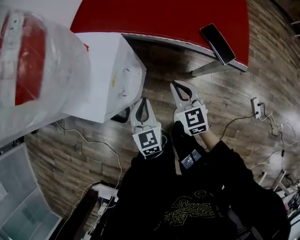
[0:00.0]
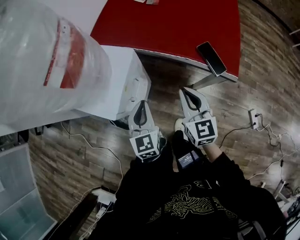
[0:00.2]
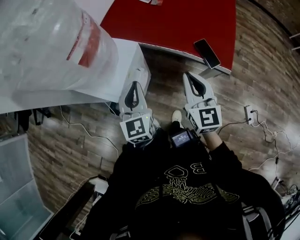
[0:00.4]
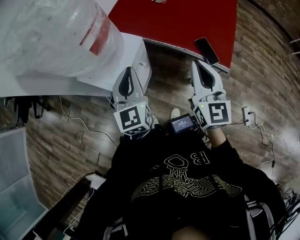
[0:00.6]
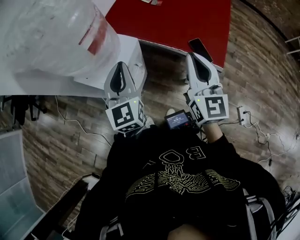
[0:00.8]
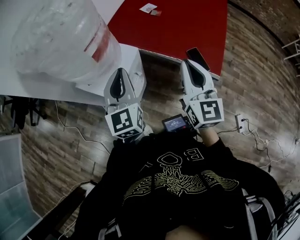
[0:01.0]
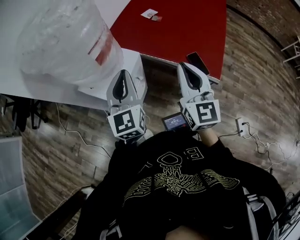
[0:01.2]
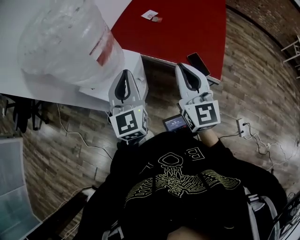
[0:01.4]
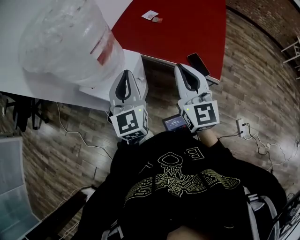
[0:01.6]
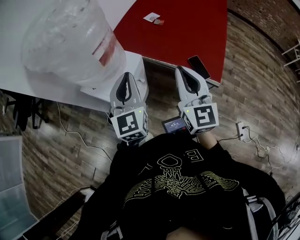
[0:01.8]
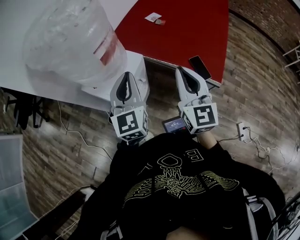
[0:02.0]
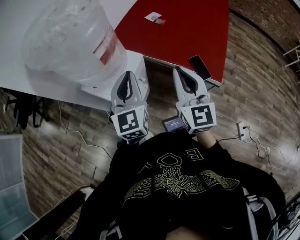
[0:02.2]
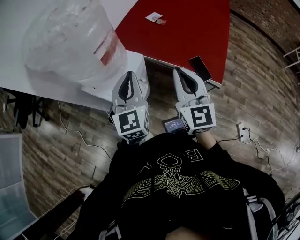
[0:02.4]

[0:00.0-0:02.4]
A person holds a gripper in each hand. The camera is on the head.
0:00.0 to 0:01.2: The two grippers go approximately 35 cm upward. The left gripper rotates about 30 degrees. Meanwhile the right gripper turns by roughly 30 degrees.
0:01.2 to 0:02.4: The grippers move only a little.

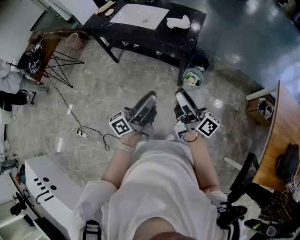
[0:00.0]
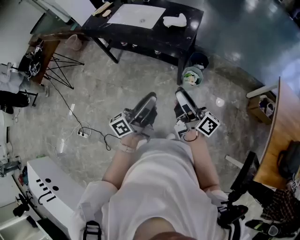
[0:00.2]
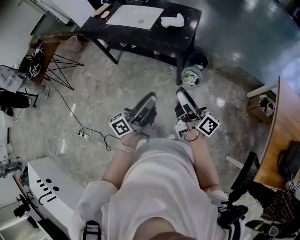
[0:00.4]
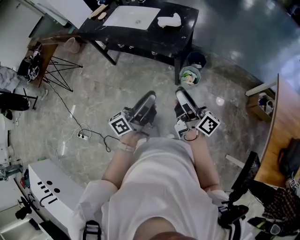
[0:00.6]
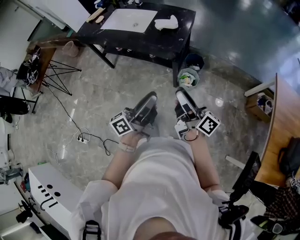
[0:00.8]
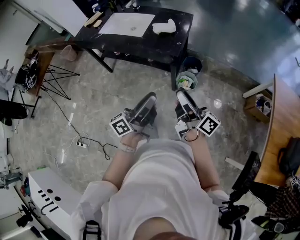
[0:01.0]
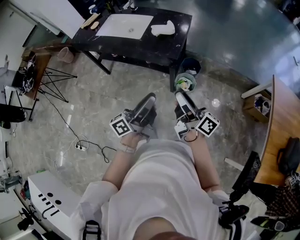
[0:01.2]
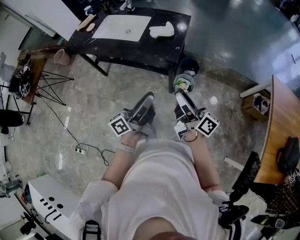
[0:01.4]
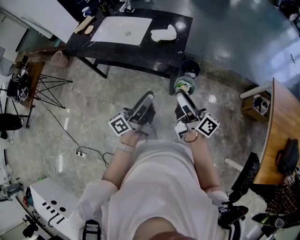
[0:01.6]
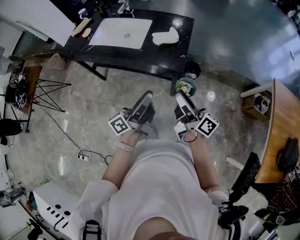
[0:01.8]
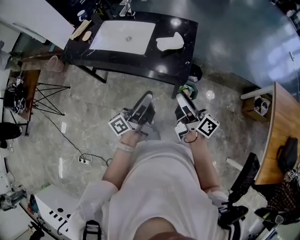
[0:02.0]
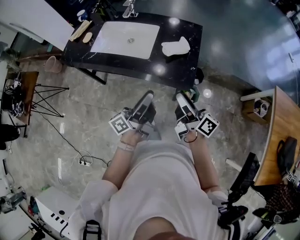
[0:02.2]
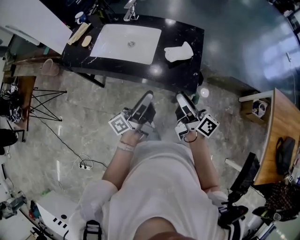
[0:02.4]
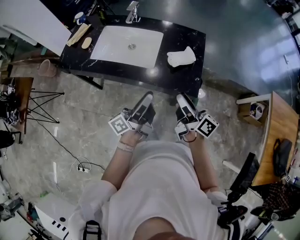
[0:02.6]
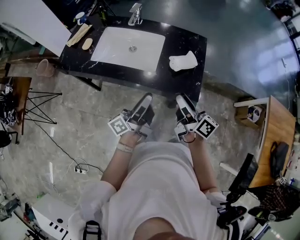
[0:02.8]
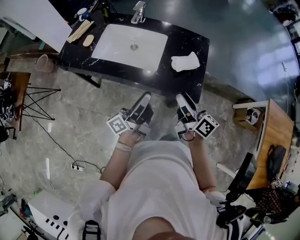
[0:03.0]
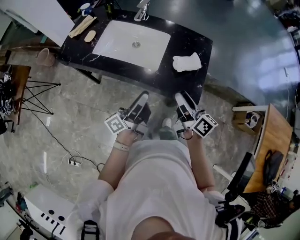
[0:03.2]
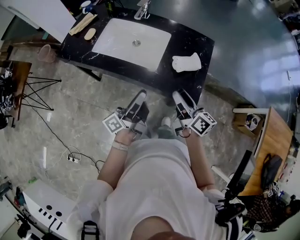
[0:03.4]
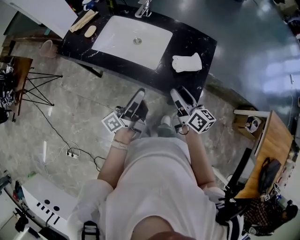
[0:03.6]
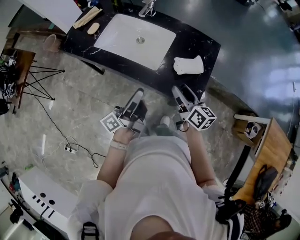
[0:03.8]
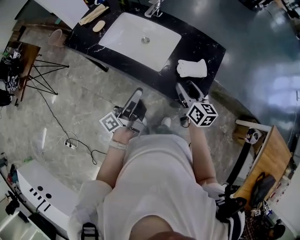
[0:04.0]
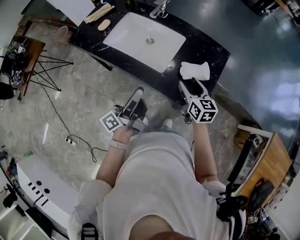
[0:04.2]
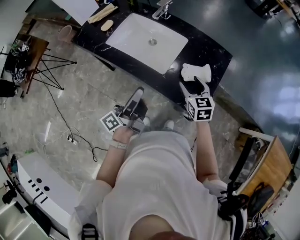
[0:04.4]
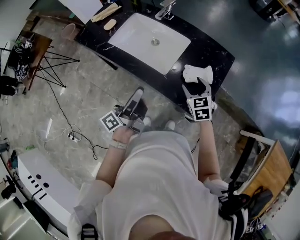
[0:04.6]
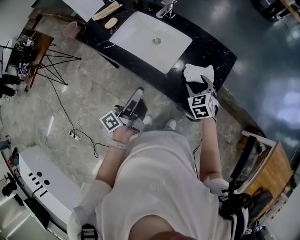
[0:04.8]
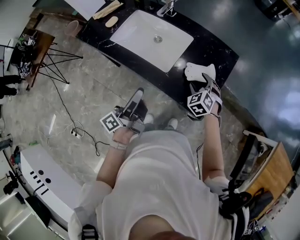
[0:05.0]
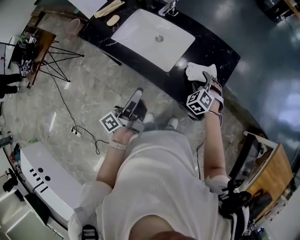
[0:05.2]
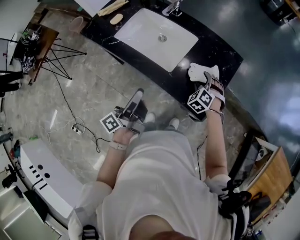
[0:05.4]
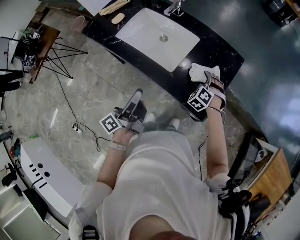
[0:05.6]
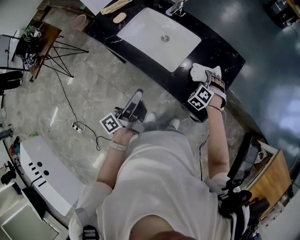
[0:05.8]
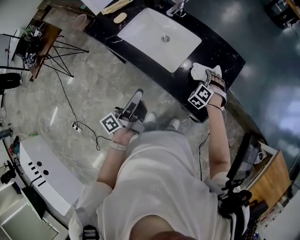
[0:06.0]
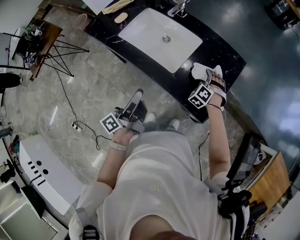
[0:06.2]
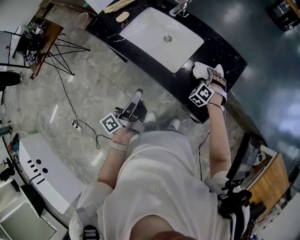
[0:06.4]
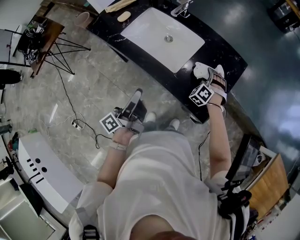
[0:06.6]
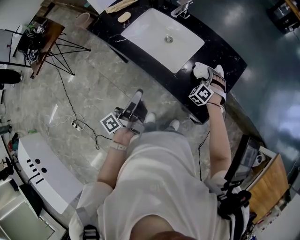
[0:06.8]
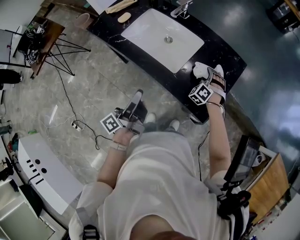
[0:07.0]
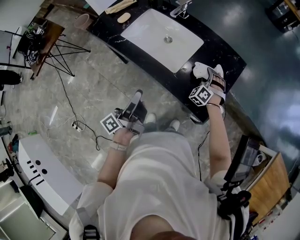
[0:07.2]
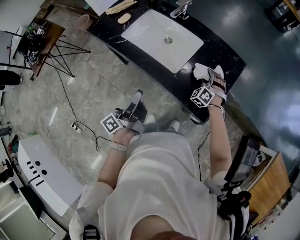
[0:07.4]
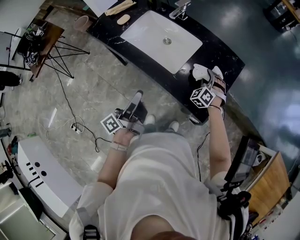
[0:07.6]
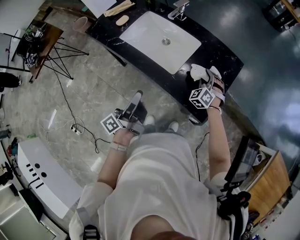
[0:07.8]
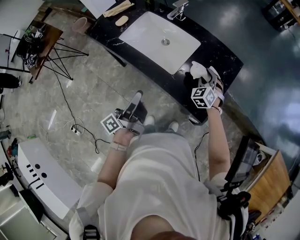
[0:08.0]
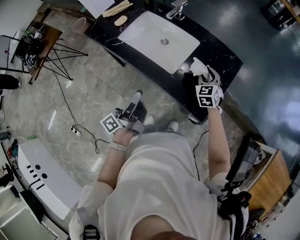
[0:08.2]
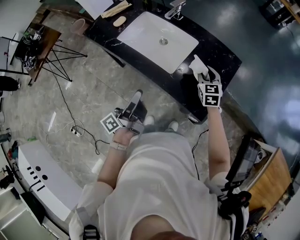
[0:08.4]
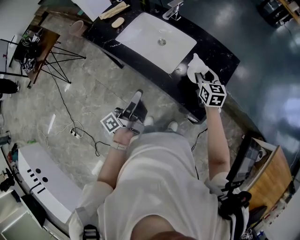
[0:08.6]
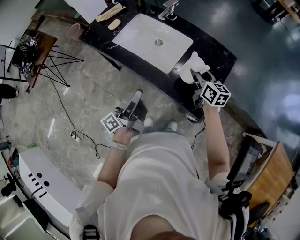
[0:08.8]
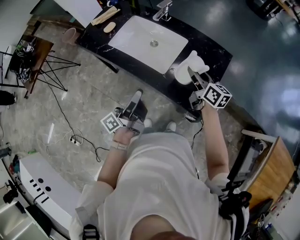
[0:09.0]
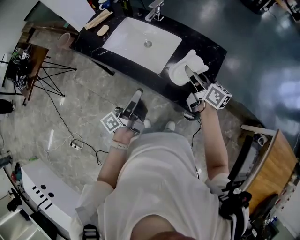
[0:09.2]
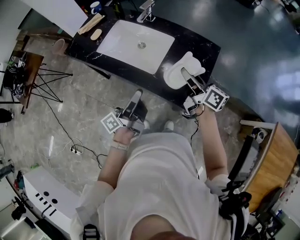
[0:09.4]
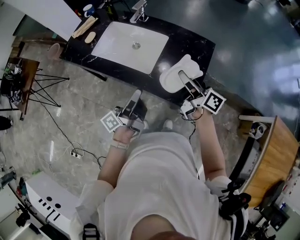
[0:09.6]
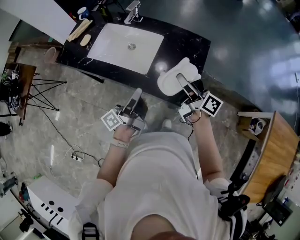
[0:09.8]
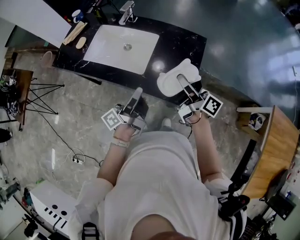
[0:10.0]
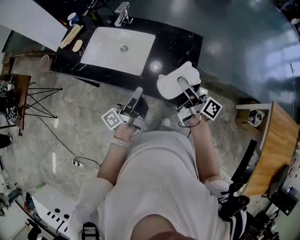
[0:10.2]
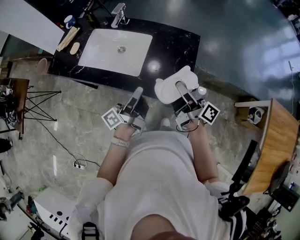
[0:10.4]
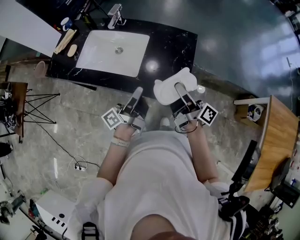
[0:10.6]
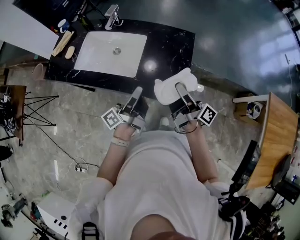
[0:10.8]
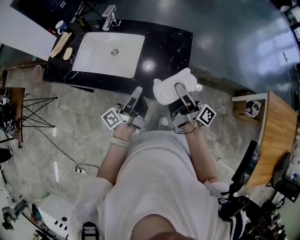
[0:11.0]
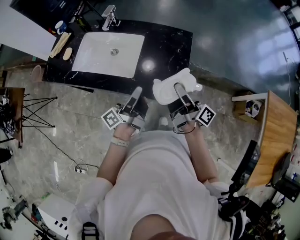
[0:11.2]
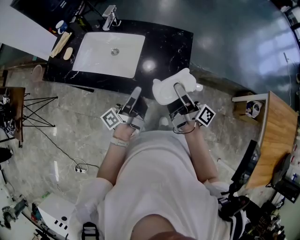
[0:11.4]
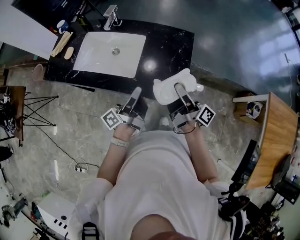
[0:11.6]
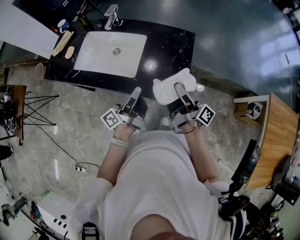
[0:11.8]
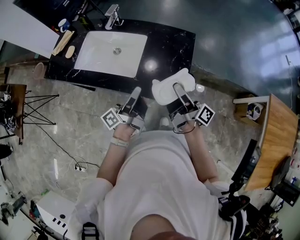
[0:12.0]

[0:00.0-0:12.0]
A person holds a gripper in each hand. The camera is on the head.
0:00.0 to 0:01.6: The right gripper changes place by approximately 15 cm.
0:01.6 to 0:03.0: The right gripper changes place by about 30 cm.
0:03.0 to 0:04.4: The right gripper moves roughly 20 cm, and rotates around the line of its fingers by approximately 50 degrees, counterclockwise from behind.
0:04.4 to 0:06.0: The right gripper shifts some 10 cm downward, and rotates around the line of its fingers by approximately 60 degrees, counterclockwise from behind.
0:06.0 to 0:07.6: The right gripper closes.
0:07.6 to 0:09.0: The right gripper moves upward, approximately 15 cm, and twists approximately 90 degrees clockwise, seen from behind.
0:09.0 to 0:10.4: The right gripper moves roughly 15 cm, and changes its angle by approximately 40 degrees.

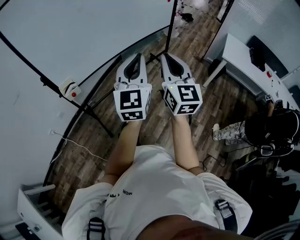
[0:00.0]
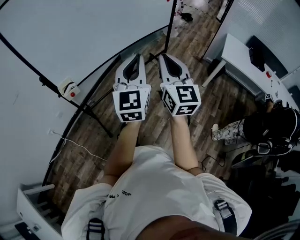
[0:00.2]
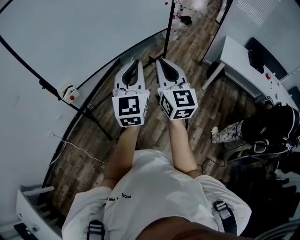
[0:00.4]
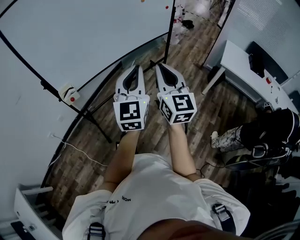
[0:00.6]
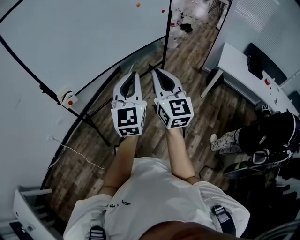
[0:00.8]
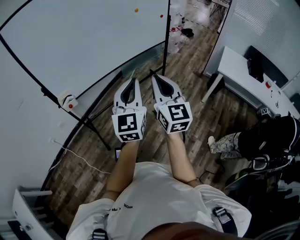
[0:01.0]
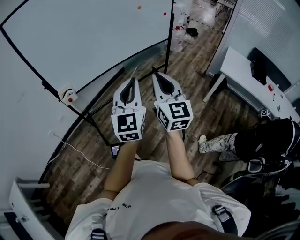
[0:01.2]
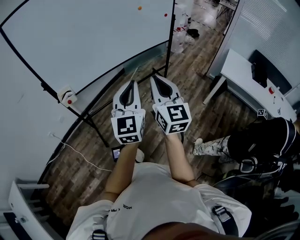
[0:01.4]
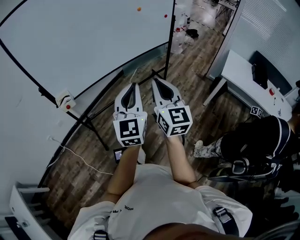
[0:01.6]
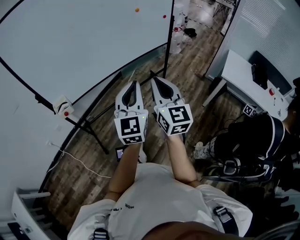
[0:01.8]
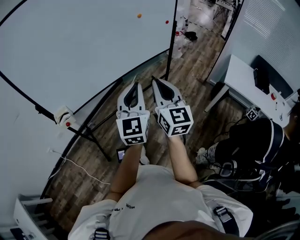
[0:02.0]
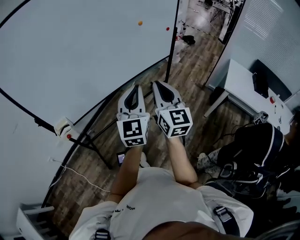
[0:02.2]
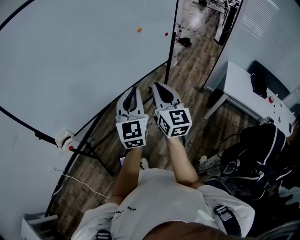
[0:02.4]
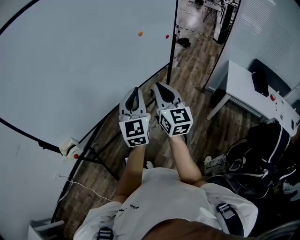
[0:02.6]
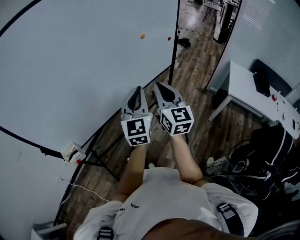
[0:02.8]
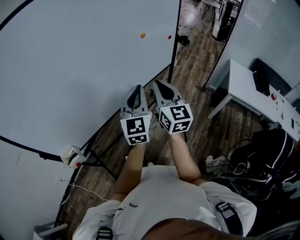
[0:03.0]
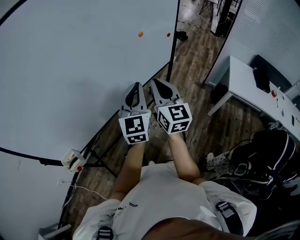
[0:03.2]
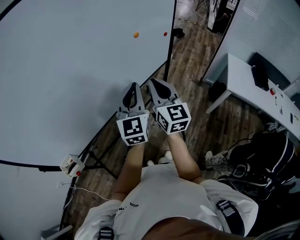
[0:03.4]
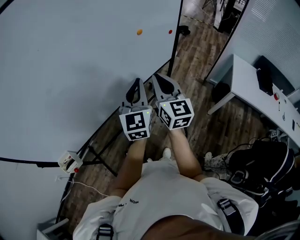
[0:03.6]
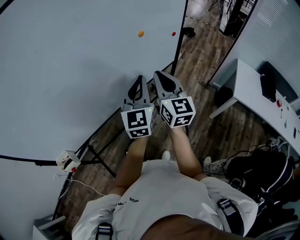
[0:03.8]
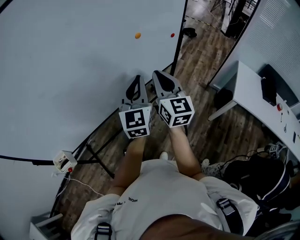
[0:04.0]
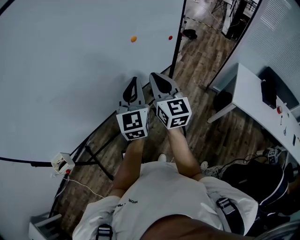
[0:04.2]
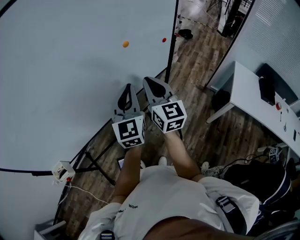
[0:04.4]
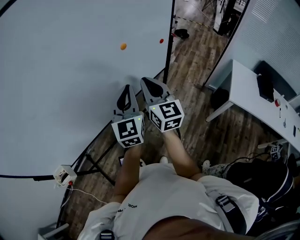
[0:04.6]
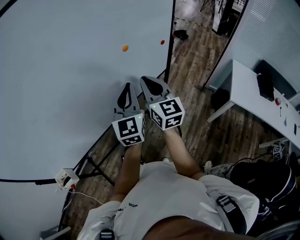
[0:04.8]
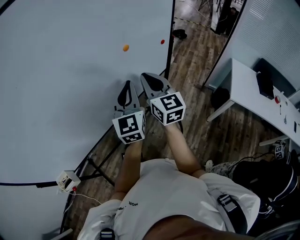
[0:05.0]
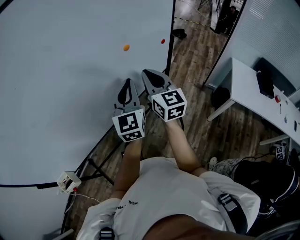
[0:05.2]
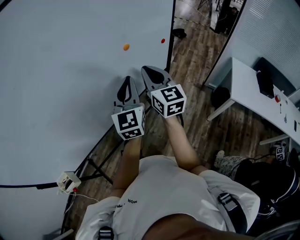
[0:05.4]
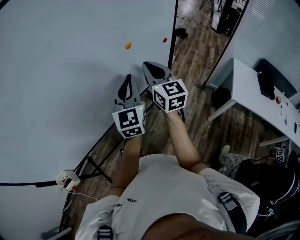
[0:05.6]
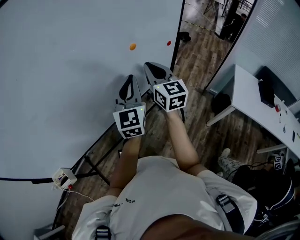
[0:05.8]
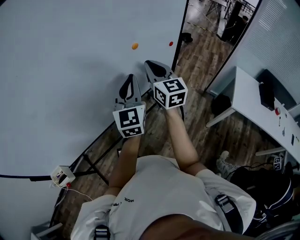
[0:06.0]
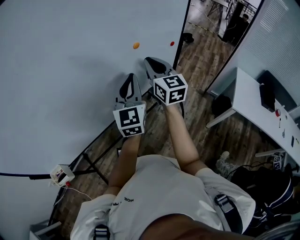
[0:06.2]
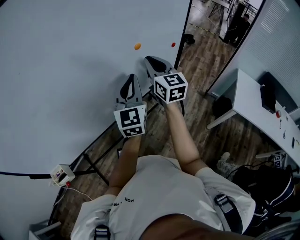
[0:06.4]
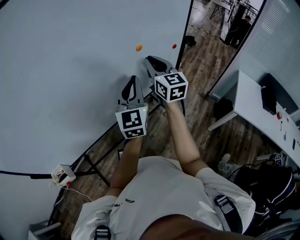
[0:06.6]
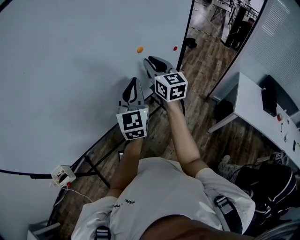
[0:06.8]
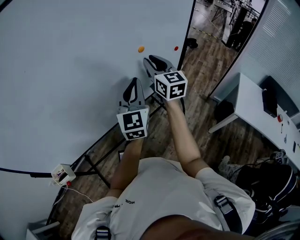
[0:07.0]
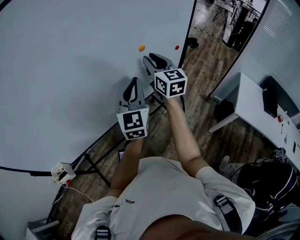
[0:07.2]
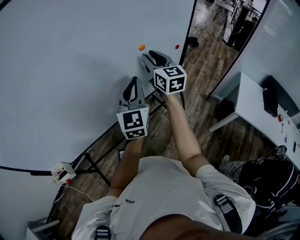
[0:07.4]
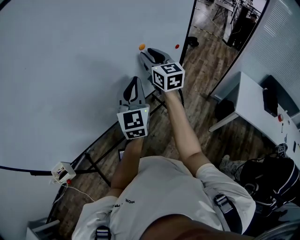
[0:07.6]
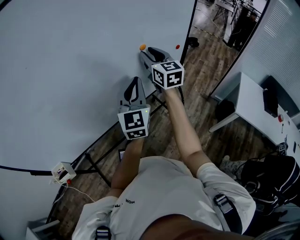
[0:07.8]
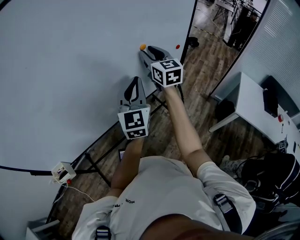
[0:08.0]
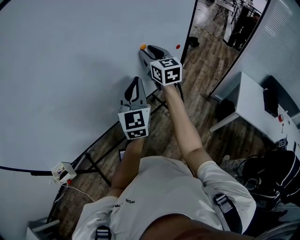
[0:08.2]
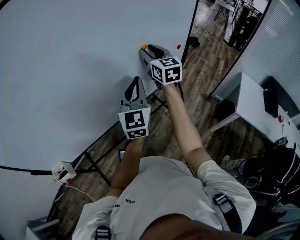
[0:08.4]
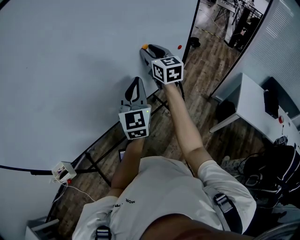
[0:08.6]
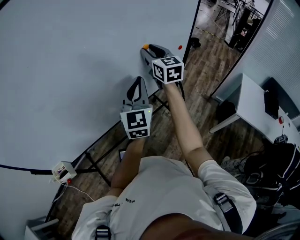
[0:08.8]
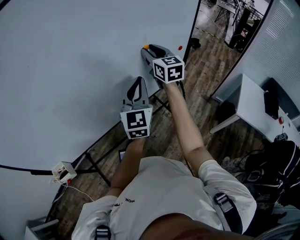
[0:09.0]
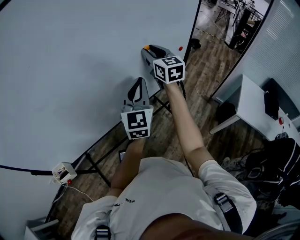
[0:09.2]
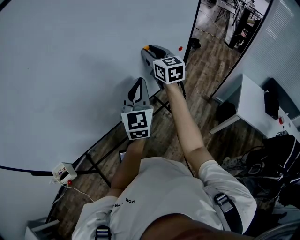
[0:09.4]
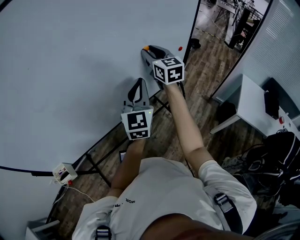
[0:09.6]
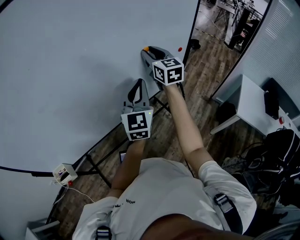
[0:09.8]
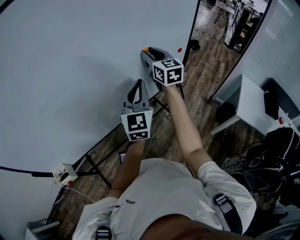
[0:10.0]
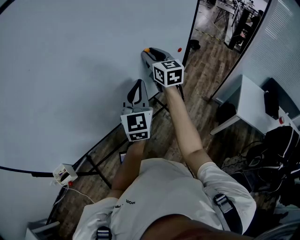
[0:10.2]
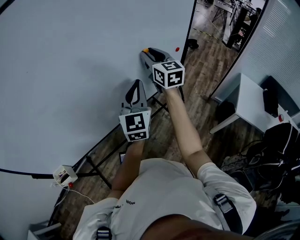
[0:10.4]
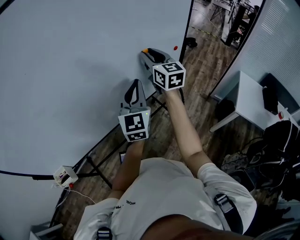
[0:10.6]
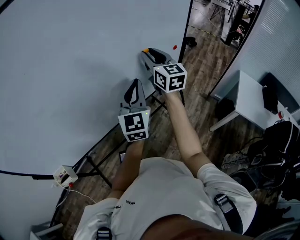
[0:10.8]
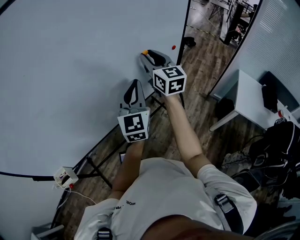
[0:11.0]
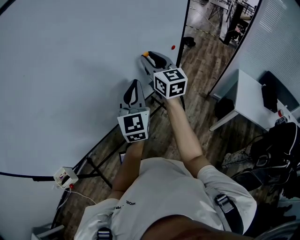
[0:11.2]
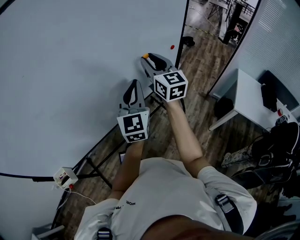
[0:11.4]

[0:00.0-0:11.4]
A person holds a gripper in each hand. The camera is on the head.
0:00.0 to 0:01.4: Both grippers travel together to the right, roughly 5 cm.
0:01.4 to 0:02.8: The two grippers go roughly 30 cm forward.
0:02.8 to 0:04.2: Both grippers travel together forward and to the right, roughly 20 cm.
0:04.2 to 0:05.6: Both grippers move forward, approximately 5 cm.
0:05.6 to 0:07.2: The right gripper travels forward by some 5 cm.
0:07.2 to 0:08.6: The right gripper changes place by about 5 cm.
0:08.6 to 0:10.0: The two grippers keep their place.
0:10.0 to 0:11.4: The right gripper shifts about 5 cm backward.
